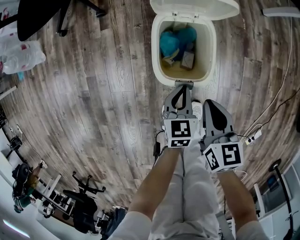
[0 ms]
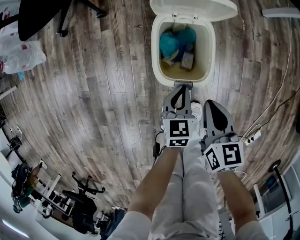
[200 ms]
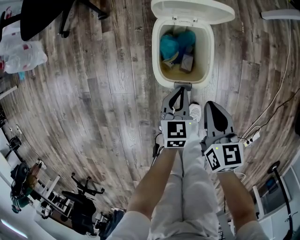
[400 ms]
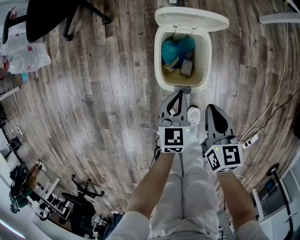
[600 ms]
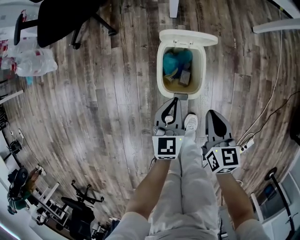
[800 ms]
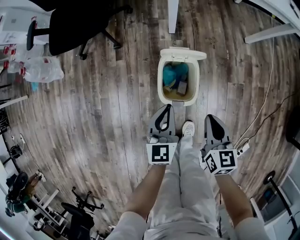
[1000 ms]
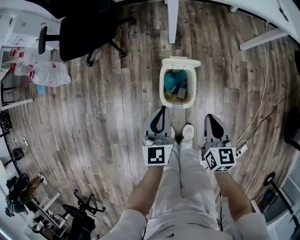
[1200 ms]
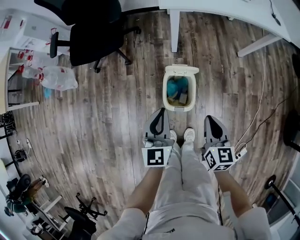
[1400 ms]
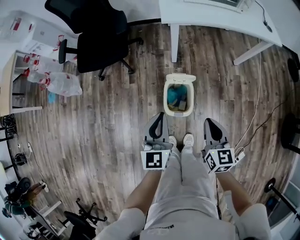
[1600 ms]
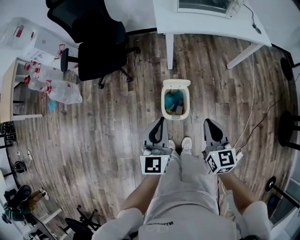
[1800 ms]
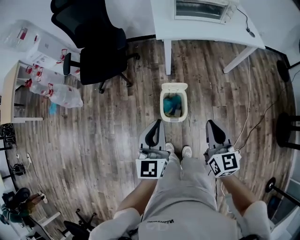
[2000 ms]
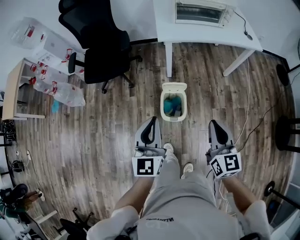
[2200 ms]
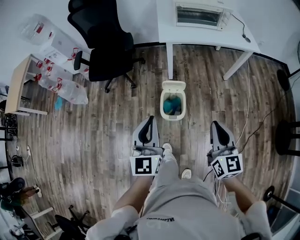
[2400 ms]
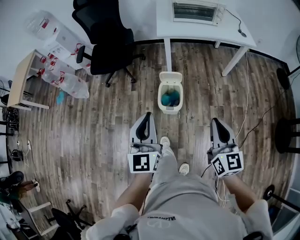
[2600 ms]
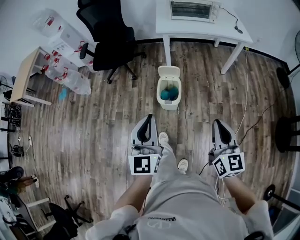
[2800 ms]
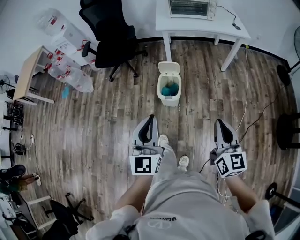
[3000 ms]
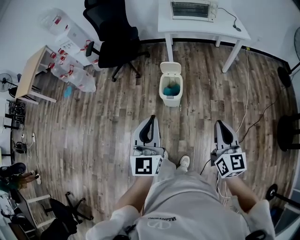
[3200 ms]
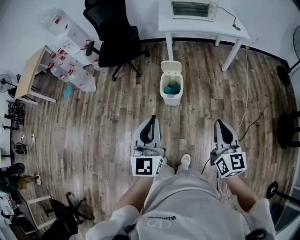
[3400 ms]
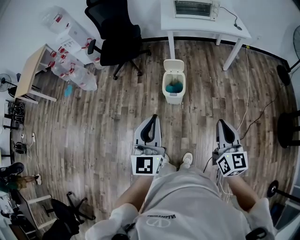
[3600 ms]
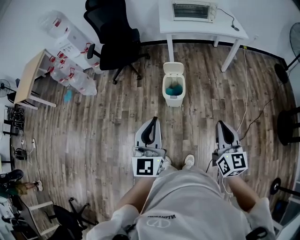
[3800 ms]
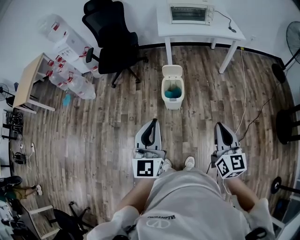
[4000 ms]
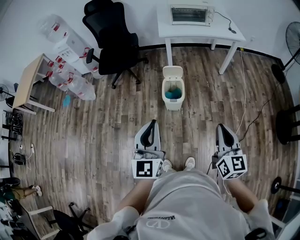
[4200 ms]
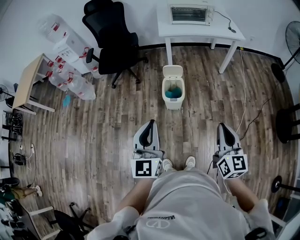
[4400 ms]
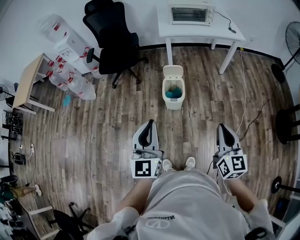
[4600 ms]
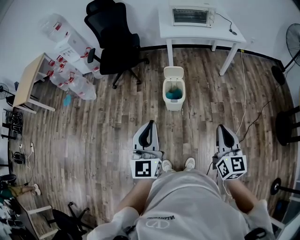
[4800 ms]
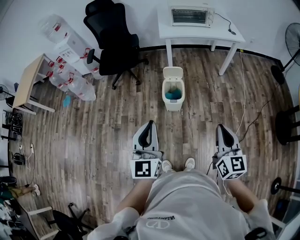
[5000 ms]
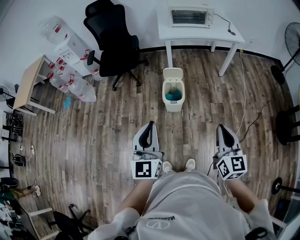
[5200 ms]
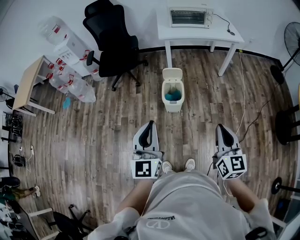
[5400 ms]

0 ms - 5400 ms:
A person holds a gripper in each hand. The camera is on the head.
0 ms - 1400 ms: Both grippers move upward, approximately 35 cm. The left gripper rotates some 30 degrees.
1400 ms - 2800 ms: The grippers both shift backward and upward by roughly 40 cm. The right gripper rotates roughly 20 degrees.
2800 ms - 4000 ms: The right gripper heads backward, covering some 10 cm; the left gripper heads backward and to the left, covering approximately 10 cm.
4000 ms - 5400 ms: The grippers make only small movements.

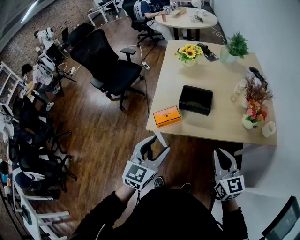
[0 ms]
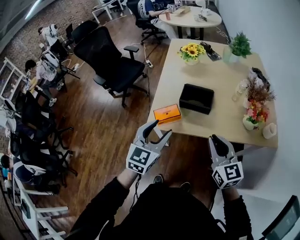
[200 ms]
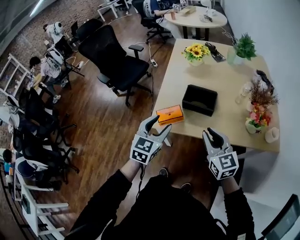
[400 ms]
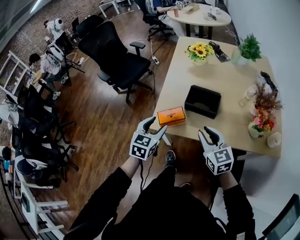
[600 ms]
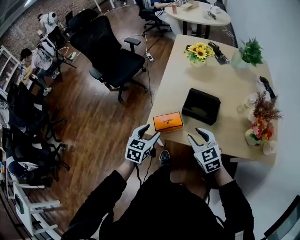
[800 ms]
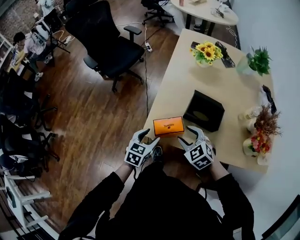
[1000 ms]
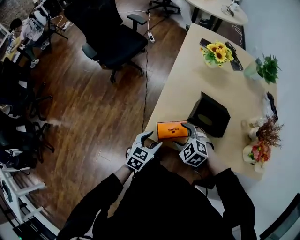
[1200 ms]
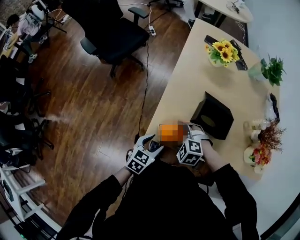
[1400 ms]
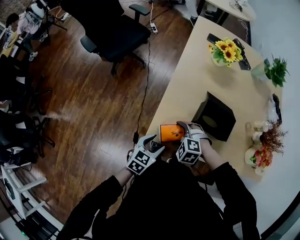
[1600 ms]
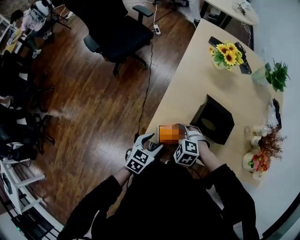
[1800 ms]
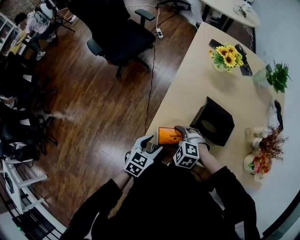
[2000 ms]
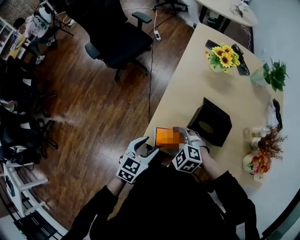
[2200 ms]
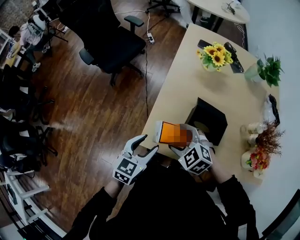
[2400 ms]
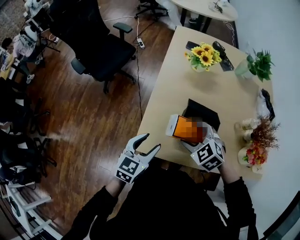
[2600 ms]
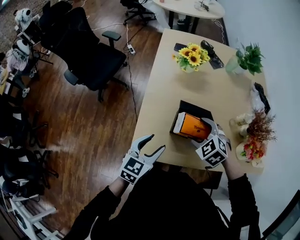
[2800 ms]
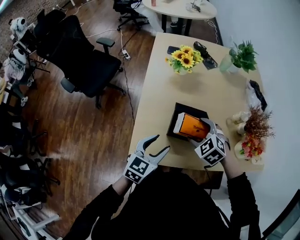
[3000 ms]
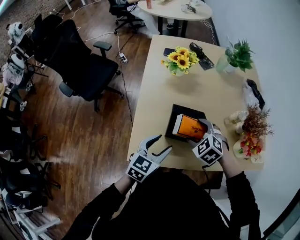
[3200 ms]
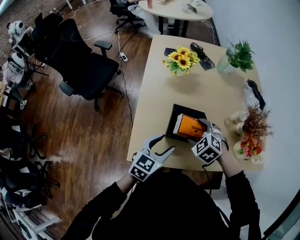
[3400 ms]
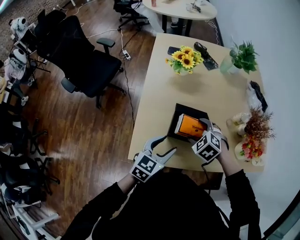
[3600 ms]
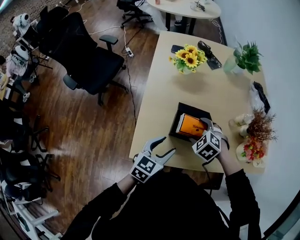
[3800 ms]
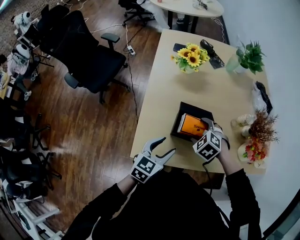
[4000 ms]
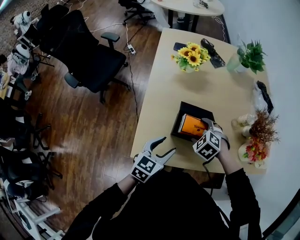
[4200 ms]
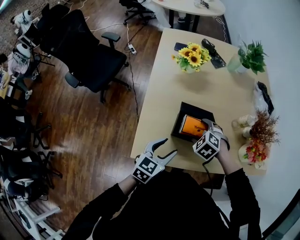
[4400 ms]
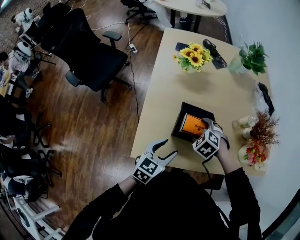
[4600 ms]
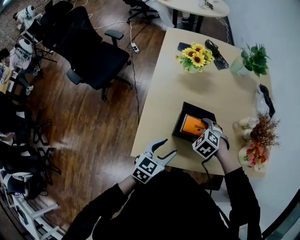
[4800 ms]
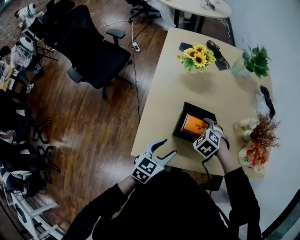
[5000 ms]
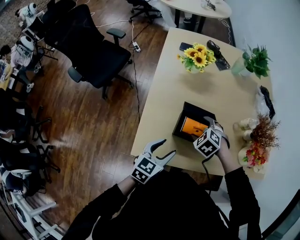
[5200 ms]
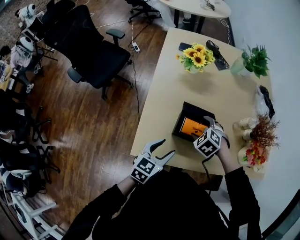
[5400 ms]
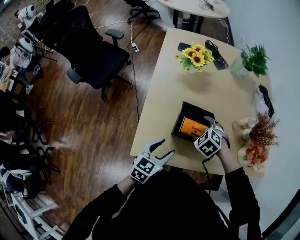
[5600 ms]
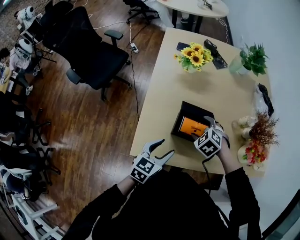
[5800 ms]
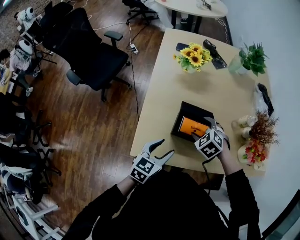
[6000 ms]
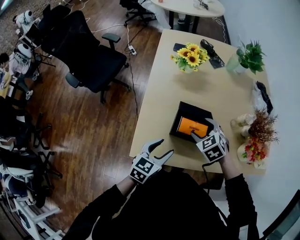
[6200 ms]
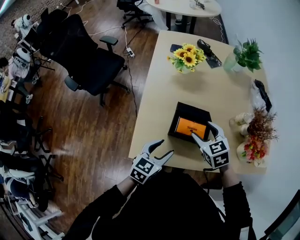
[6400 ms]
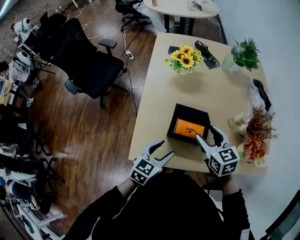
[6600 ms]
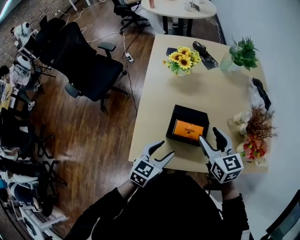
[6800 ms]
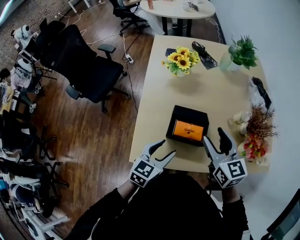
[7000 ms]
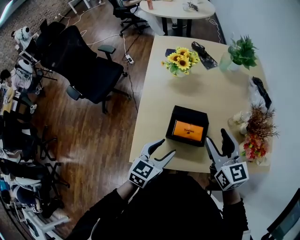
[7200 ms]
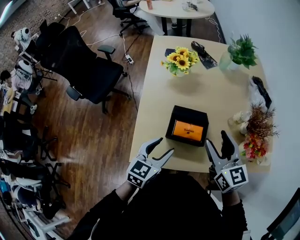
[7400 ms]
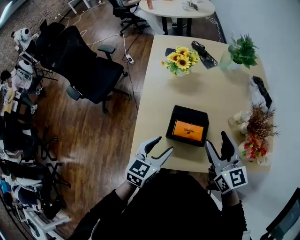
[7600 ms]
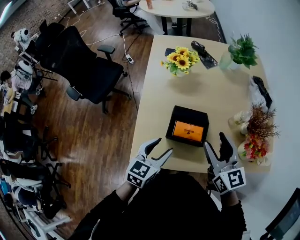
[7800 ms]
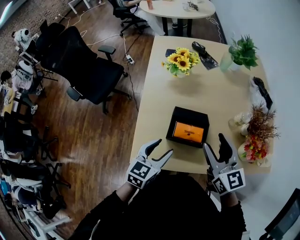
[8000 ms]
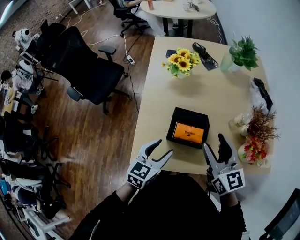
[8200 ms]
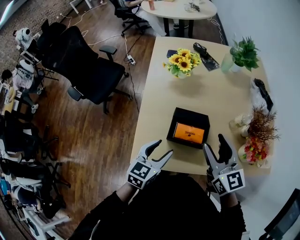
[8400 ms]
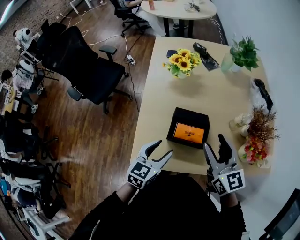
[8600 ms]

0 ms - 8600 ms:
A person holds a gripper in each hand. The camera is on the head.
0 ms - 1400 ms: The right gripper shifts approximately 40 cm downward, forward and to the left, tilts its fingers about 60 degrees downward, and opens. The left gripper goes roughly 30 cm downward and forward, and swivels roughly 30 degrees.
1400 ms - 2800 ms: The left gripper is displaced upward, to the right and forward by some 15 cm, while the right gripper moves to the right, upward and forward, approximately 20 cm, and swivels approximately 30 degrees.
2800 ms - 4400 ms: The right gripper moves downward, roughly 5 cm, while the left gripper goes approximately 5 cm to the right.
4400 ms - 5800 ms: The grippers stay close to where they were, moving slightly.
5800 ms - 7200 ms: The left gripper is displaced upward by roughly 5 cm. The right gripper moves upward, roughly 20 cm, and tilts its fingers about 50 degrees upward.
7200 ms - 8600 ms: The grippers move only a little.

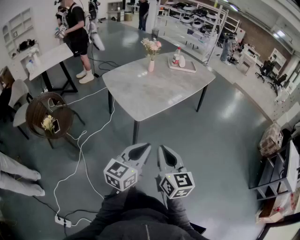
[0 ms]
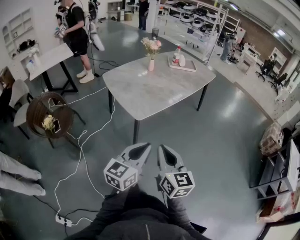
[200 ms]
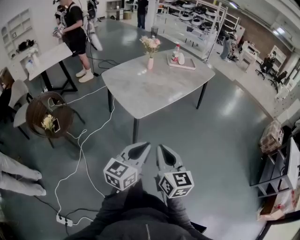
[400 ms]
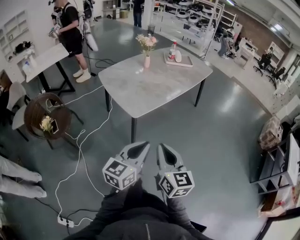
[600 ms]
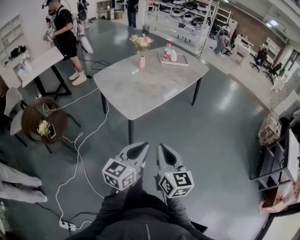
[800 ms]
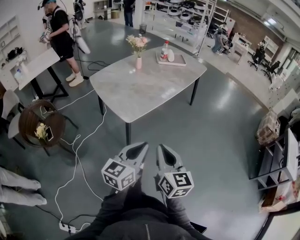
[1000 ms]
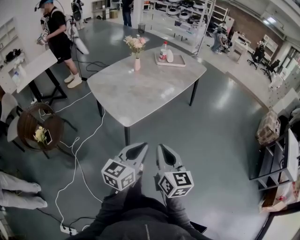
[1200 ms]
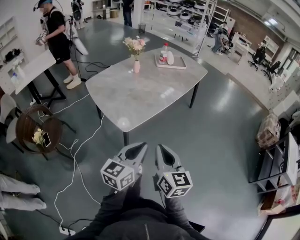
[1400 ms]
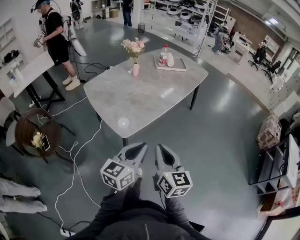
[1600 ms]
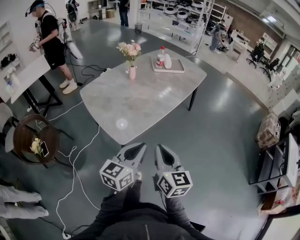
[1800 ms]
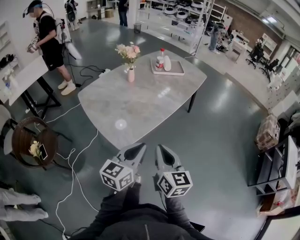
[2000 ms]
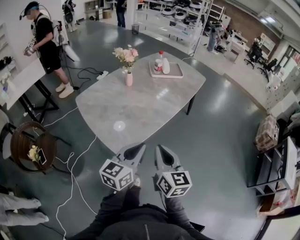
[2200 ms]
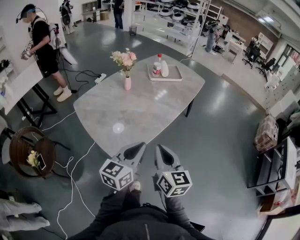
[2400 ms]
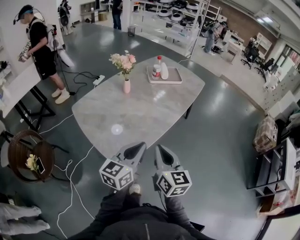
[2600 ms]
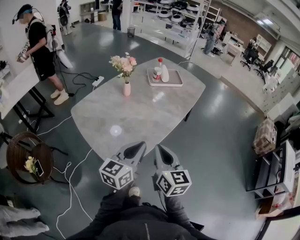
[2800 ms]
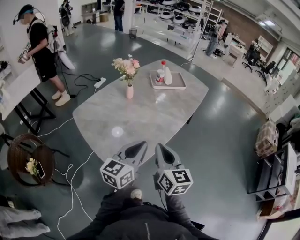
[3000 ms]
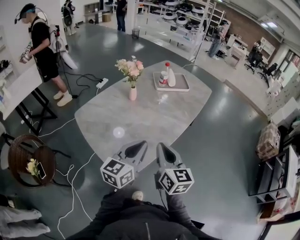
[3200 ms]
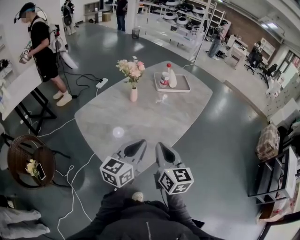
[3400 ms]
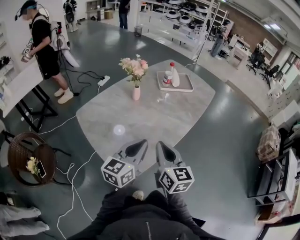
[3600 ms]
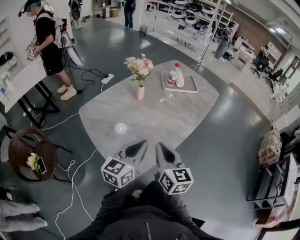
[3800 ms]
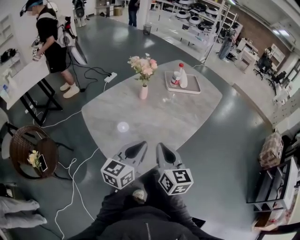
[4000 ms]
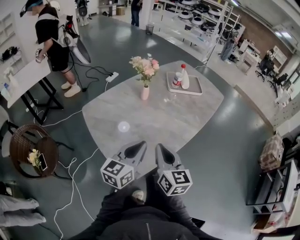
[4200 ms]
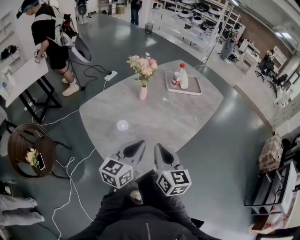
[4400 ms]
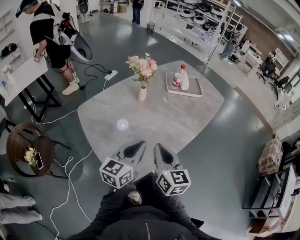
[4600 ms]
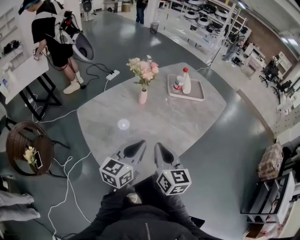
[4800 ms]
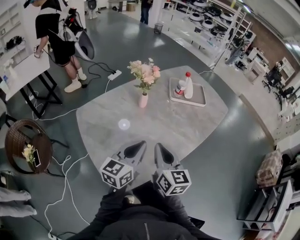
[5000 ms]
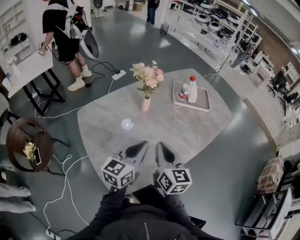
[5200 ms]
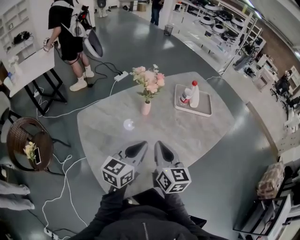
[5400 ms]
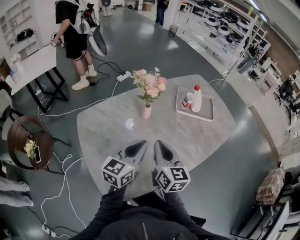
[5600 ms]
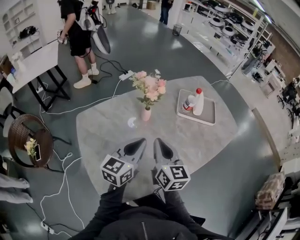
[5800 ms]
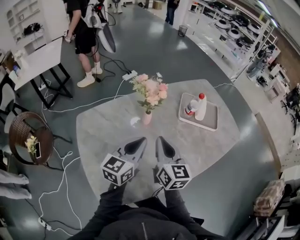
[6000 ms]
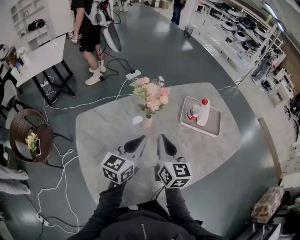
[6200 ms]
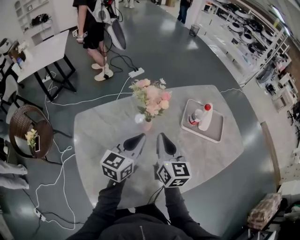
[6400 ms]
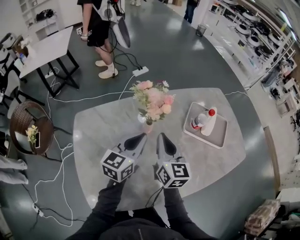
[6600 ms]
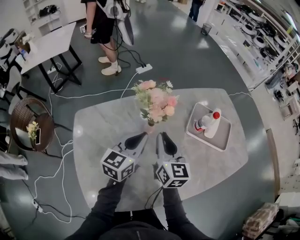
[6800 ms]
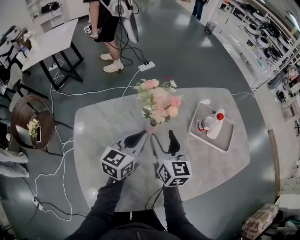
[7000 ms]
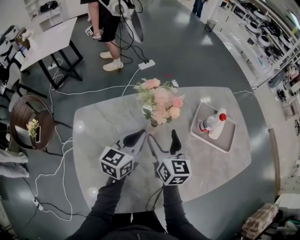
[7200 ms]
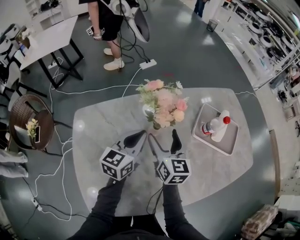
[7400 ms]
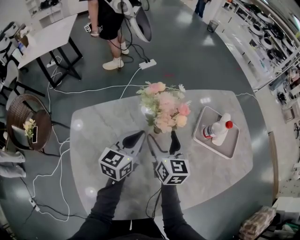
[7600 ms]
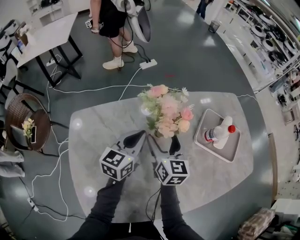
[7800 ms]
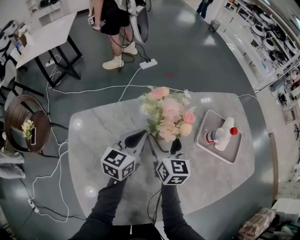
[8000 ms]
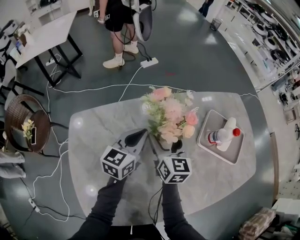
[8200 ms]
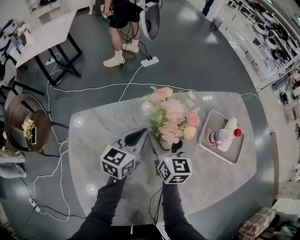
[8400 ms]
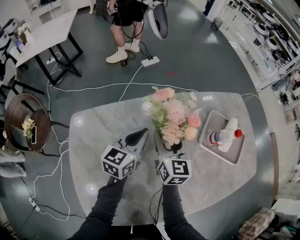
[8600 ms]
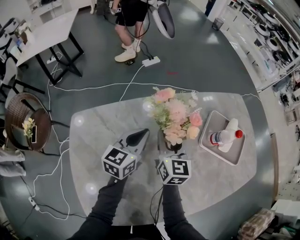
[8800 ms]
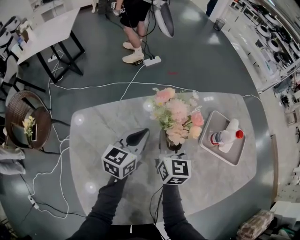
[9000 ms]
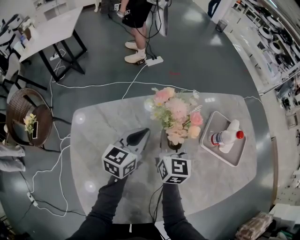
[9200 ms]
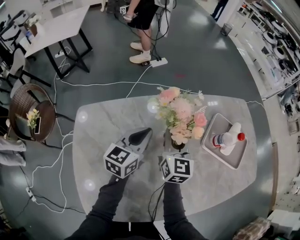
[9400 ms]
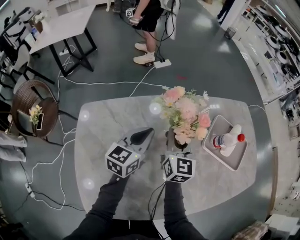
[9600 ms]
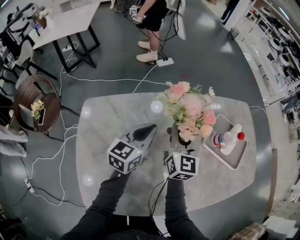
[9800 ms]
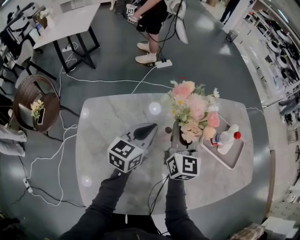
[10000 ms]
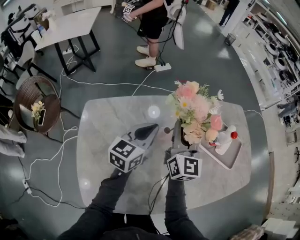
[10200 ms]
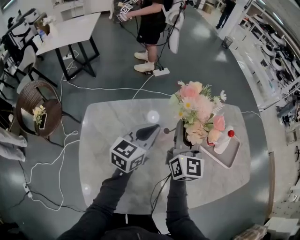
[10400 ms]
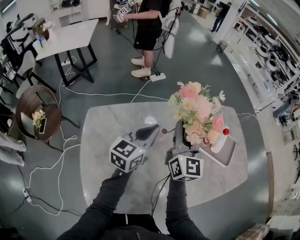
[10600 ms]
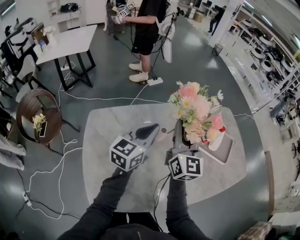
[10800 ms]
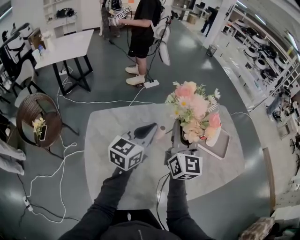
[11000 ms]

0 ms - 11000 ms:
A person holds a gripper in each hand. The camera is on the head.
0 ms - 1600 ms: Both grippers travel together forward, some 15 cm.
1600 ms - 3200 ms: The grippers both shift forward by approximately 25 cm.
3200 ms - 4800 ms: The two grippers go roughly 10 cm forward.
4800 ms - 6200 ms: The two grippers go approximately 25 cm forward.
6200 ms - 7800 ms: Both grippers move forward and downward, roughly 20 cm. The right gripper opens its fingers.
7800 ms - 9400 ms: The right gripper closes.
9400 ms - 11000 ms: Both grippers move upward and backward, some 20 cm. The right gripper swivels some 20 degrees.
